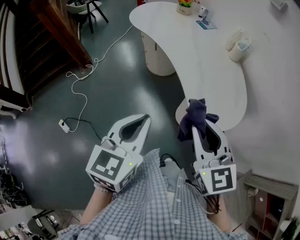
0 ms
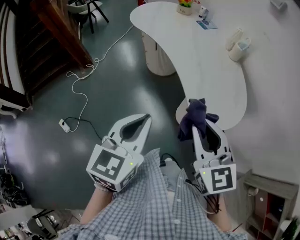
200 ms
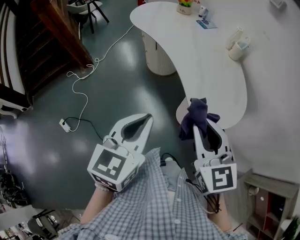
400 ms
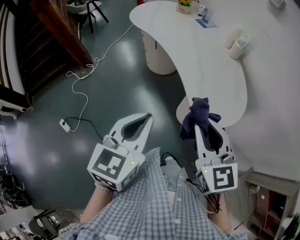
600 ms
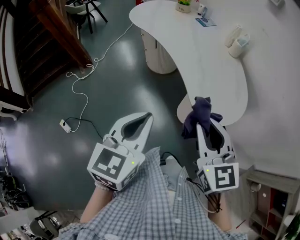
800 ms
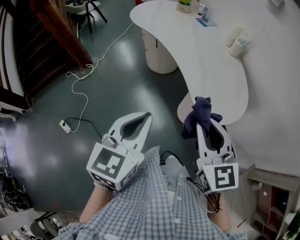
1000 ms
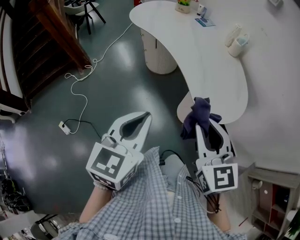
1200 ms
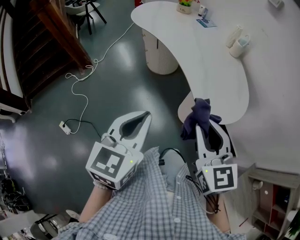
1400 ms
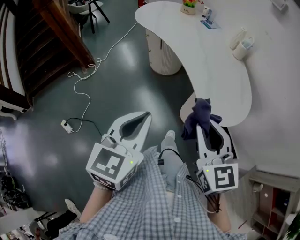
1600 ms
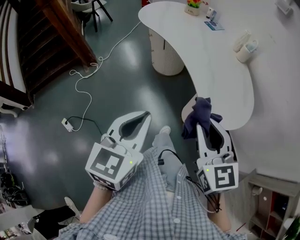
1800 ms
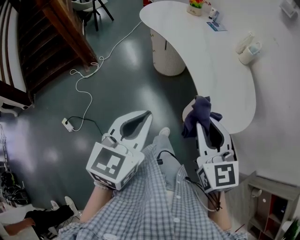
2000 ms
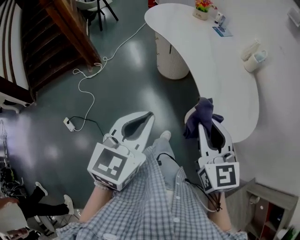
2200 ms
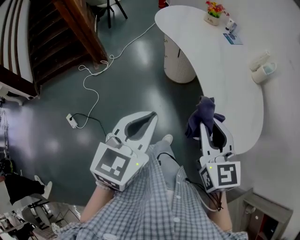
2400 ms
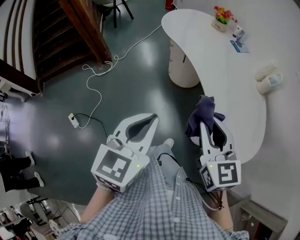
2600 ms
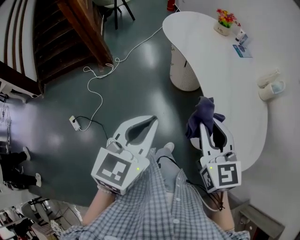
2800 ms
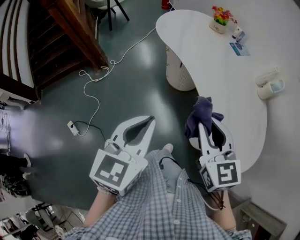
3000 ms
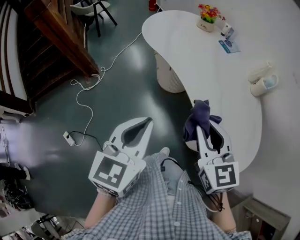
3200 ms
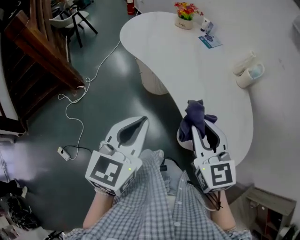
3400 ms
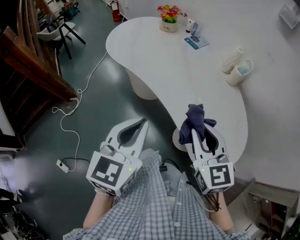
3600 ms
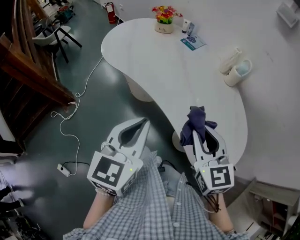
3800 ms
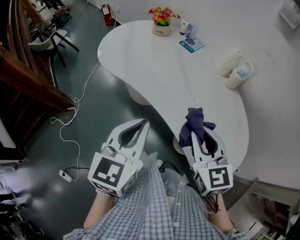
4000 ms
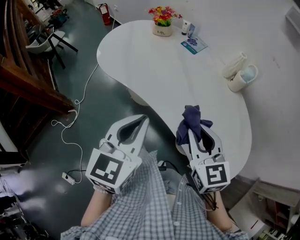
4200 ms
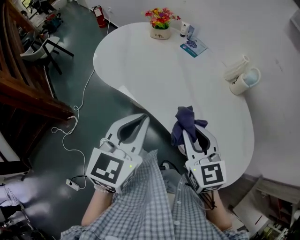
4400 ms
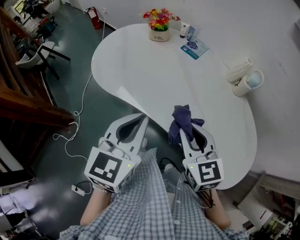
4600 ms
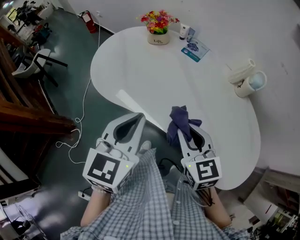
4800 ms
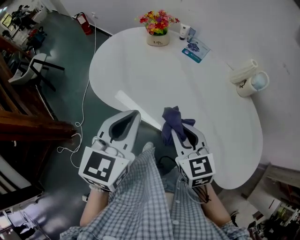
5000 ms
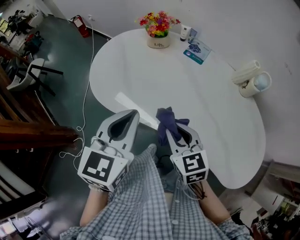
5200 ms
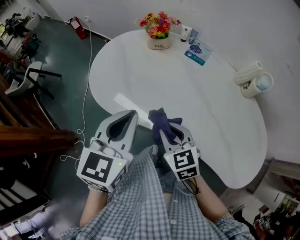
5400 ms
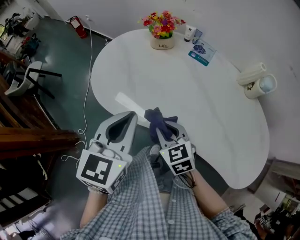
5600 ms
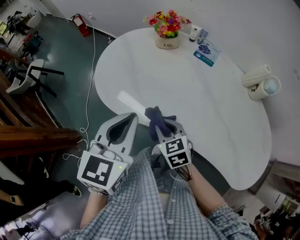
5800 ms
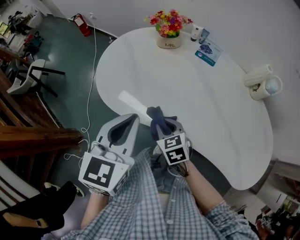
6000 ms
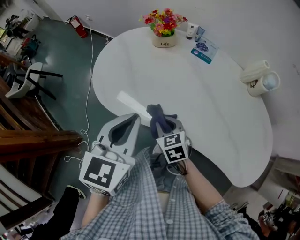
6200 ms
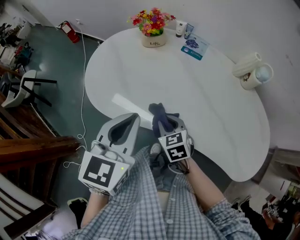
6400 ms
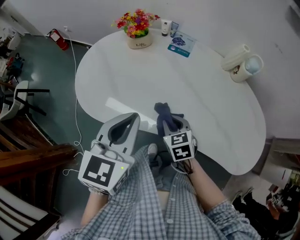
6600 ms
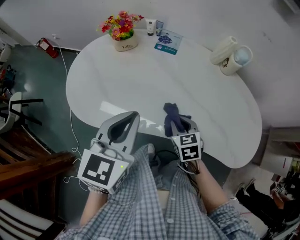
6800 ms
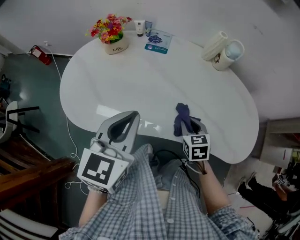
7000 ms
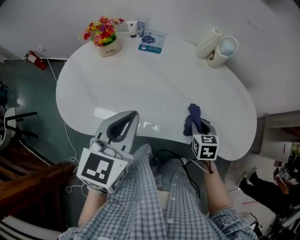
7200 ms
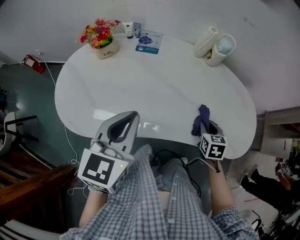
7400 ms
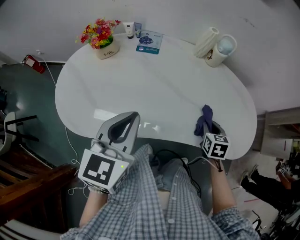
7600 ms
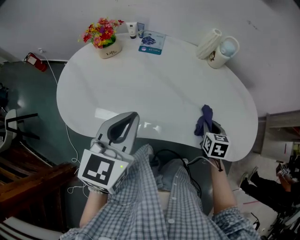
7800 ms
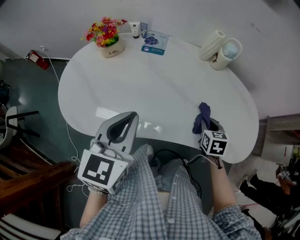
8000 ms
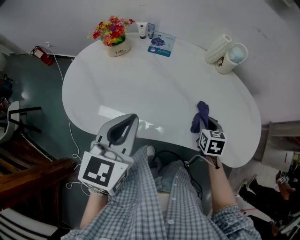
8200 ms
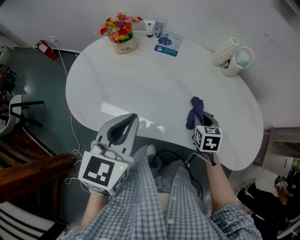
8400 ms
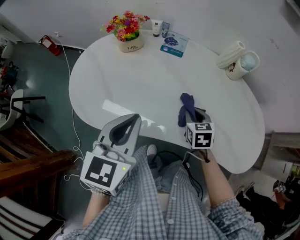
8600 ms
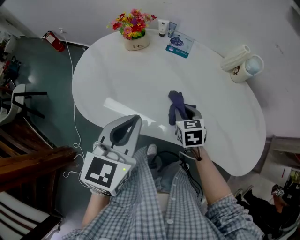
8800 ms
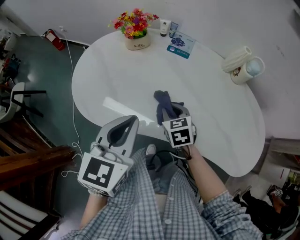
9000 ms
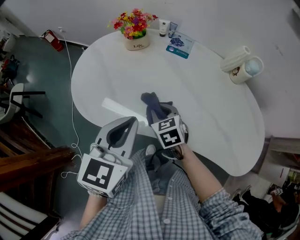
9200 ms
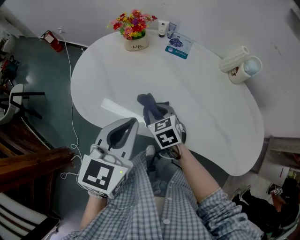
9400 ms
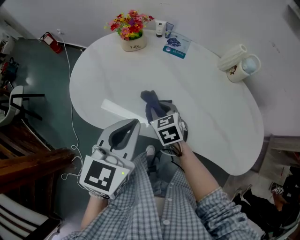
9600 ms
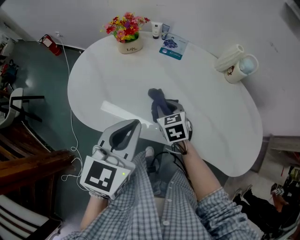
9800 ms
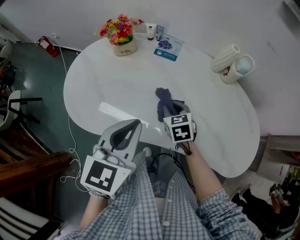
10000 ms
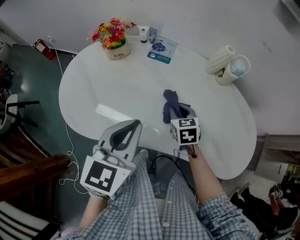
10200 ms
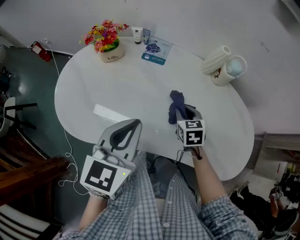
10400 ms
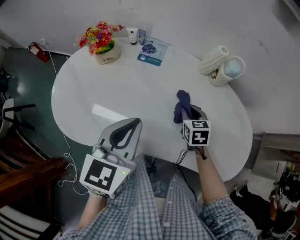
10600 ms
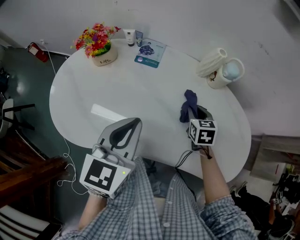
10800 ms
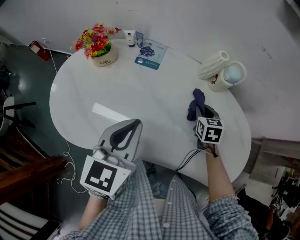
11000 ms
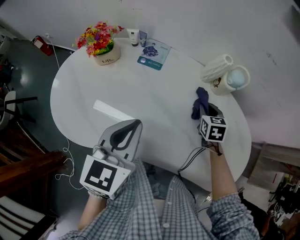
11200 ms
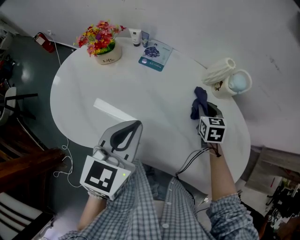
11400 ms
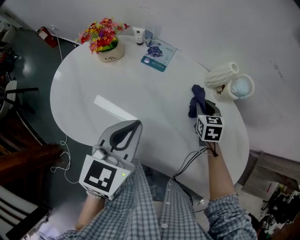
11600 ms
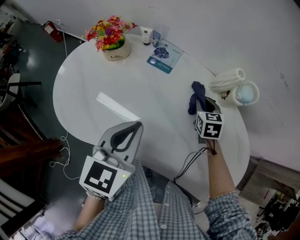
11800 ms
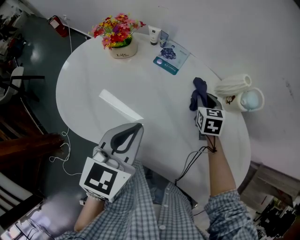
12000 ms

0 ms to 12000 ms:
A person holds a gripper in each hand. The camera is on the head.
0 ms to 1600 ms: The left gripper changes place by roughly 5 cm.
1600 ms to 3000 ms: Both grippers travel together forward, approximately 20 cm.
3000 ms to 4400 ms: The two grippers go approximately 20 cm forward. The right gripper turns by roughly 20 degrees. The left gripper rotates about 20 degrees.
4400 ms to 6000 ms: The left gripper travels forward and to the left by about 25 cm. Meanwhile the right gripper shifts approximately 35 cm to the left, downward and forward, and swivels roughly 20 degrees.
6000 ms to 7600 ms: The right gripper moves approximately 35 cm, and rotates roughly 50 degrees; the left gripper shifts by some 15 cm, and turns by approximately 20 degrees.
7600 ms to 9000 ms: The left gripper moves approximately 10 cm. Meanwhile the right gripper ends up roughly 30 cm from where it was, and changes its angle by about 40 degrees.
9000 ms to 10400 ms: The right gripper is displaced to the right by approximately 15 cm, while the left gripper travels to the right by approximately 10 cm.
10400 ms to 12000 ms: The right gripper travels forward by approximately 15 cm. Meanwhile the left gripper is displaced forward by about 5 cm.

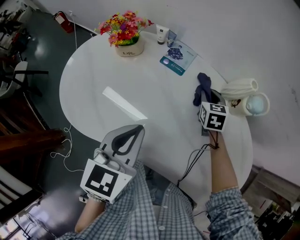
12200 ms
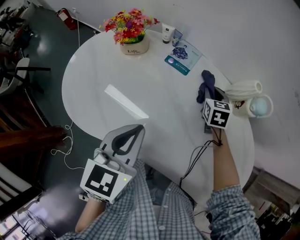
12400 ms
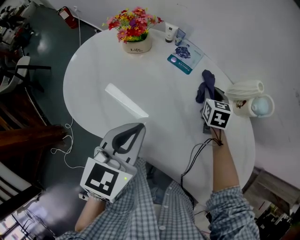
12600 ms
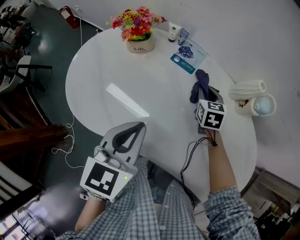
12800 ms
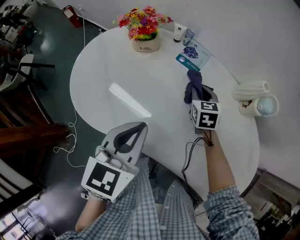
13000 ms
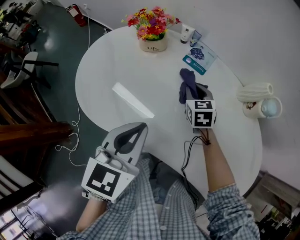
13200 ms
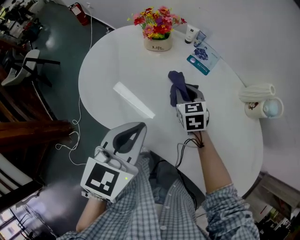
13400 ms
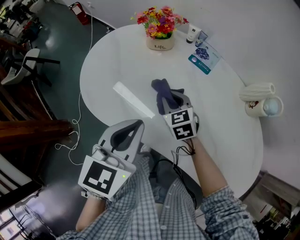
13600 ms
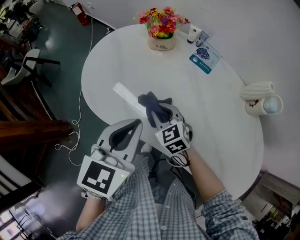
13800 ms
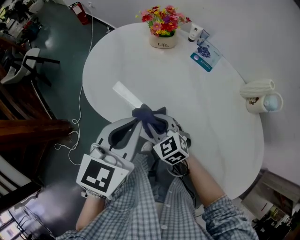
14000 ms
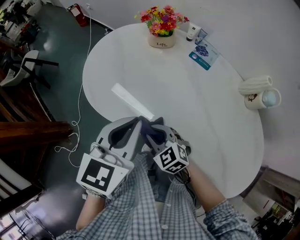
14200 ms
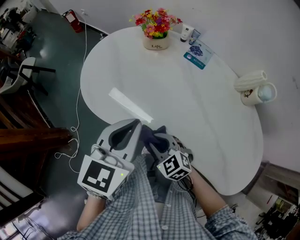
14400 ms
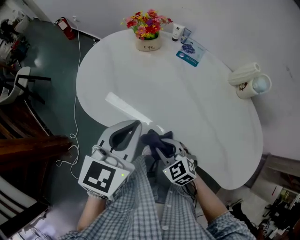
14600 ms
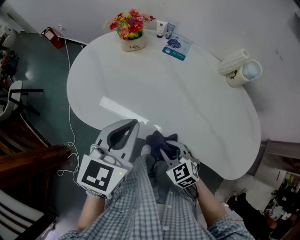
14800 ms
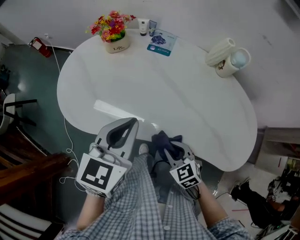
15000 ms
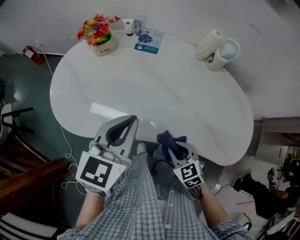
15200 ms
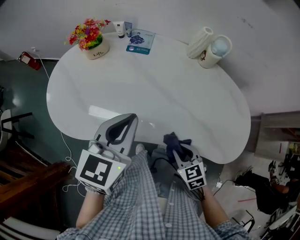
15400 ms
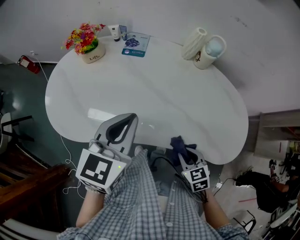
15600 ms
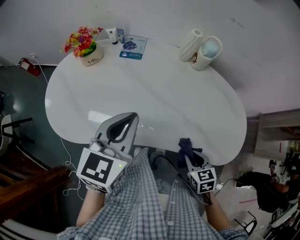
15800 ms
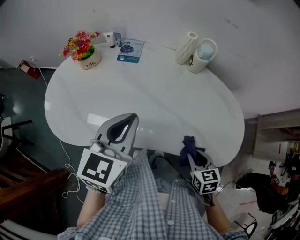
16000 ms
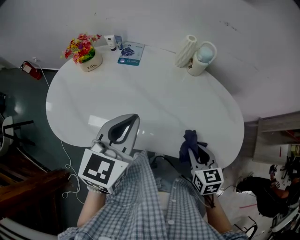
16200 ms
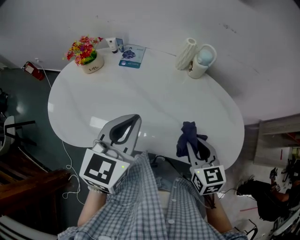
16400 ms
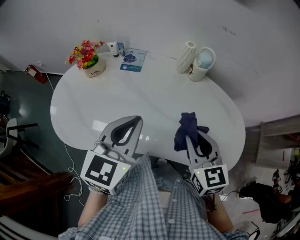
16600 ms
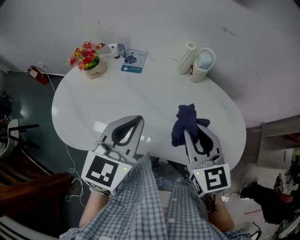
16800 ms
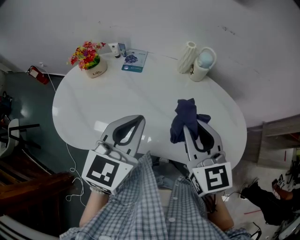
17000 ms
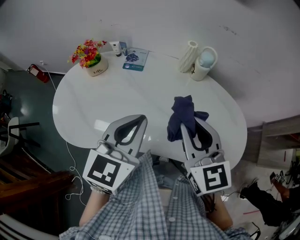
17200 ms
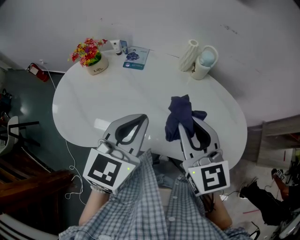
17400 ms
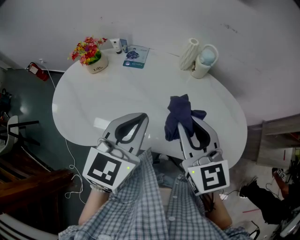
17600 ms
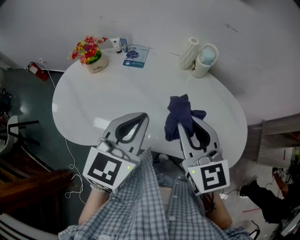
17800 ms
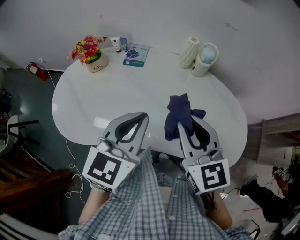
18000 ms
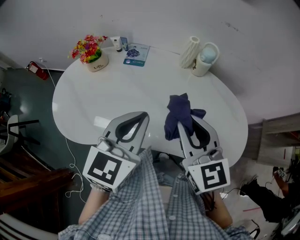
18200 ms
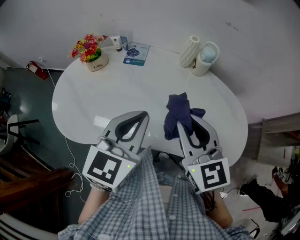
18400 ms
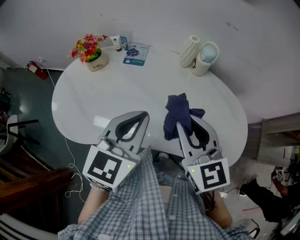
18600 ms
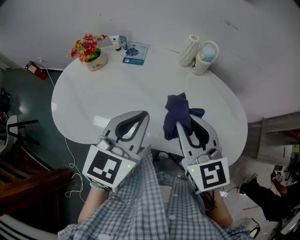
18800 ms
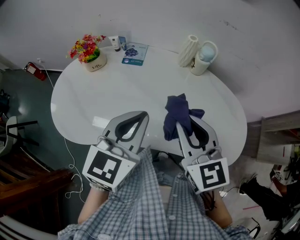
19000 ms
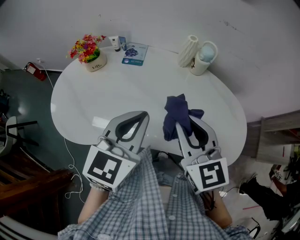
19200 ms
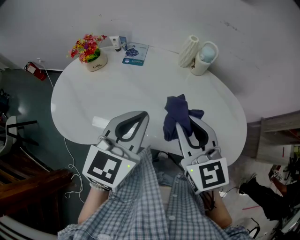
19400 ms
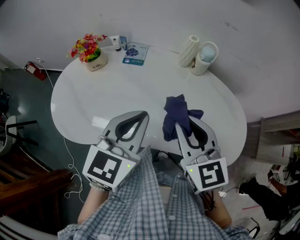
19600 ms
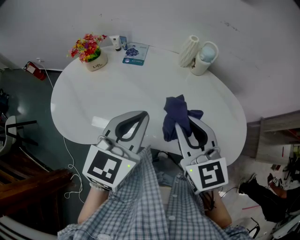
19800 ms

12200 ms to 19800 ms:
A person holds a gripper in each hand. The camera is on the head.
12200 ms to 13800 ms: The right gripper shifts by some 35 cm, and turns by roughly 40 degrees, while the left gripper moves about 15 cm.
13800 ms to 15200 ms: The right gripper moves approximately 25 cm, and changes its angle by about 30 degrees. Meanwhile the left gripper changes place by approximately 10 cm, and turns by roughly 20 degrees.
15200 ms to 16800 ms: The right gripper travels upward and forward by roughly 25 cm, and tips its fingers upward by about 30 degrees. The left gripper moves to the right and upward, about 10 cm.
16800 ms to 19800 ms: The grippers move only a little.

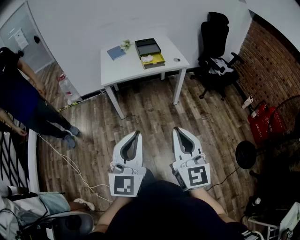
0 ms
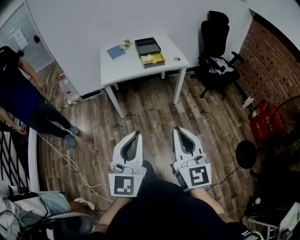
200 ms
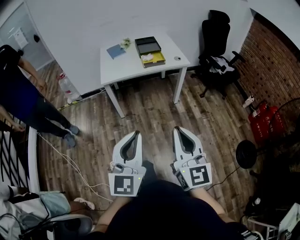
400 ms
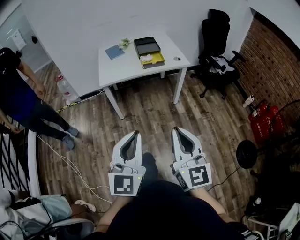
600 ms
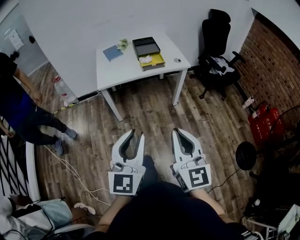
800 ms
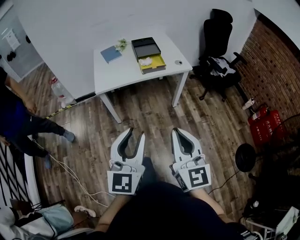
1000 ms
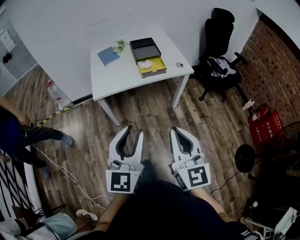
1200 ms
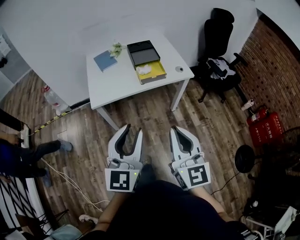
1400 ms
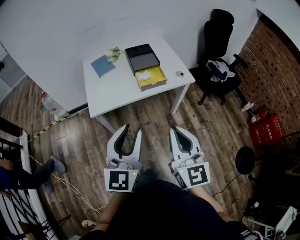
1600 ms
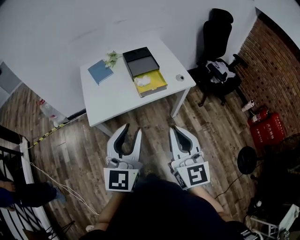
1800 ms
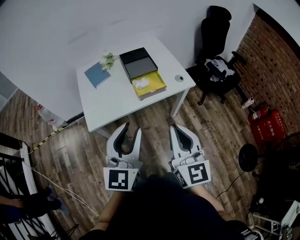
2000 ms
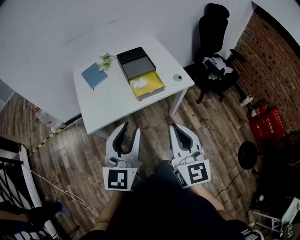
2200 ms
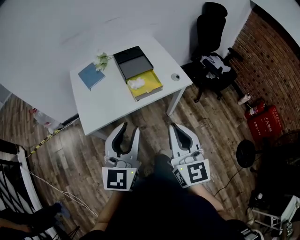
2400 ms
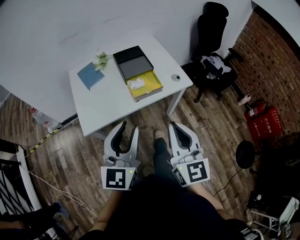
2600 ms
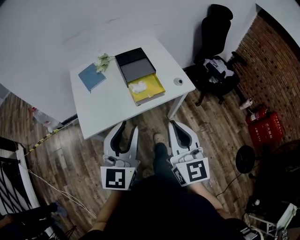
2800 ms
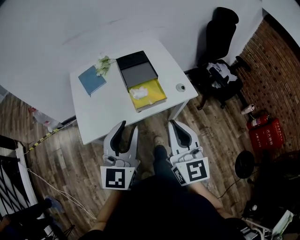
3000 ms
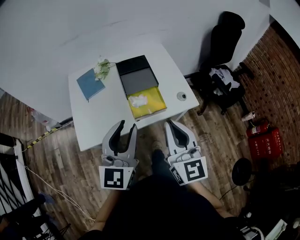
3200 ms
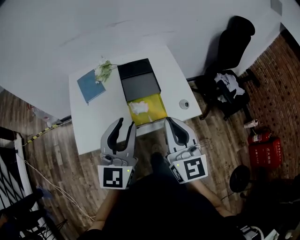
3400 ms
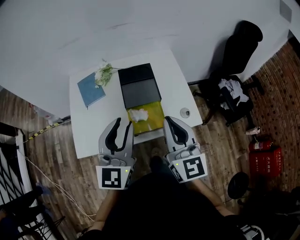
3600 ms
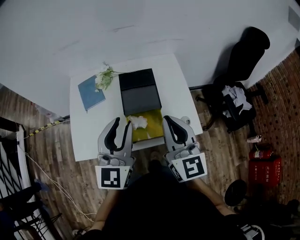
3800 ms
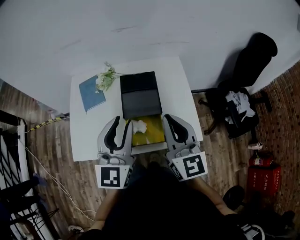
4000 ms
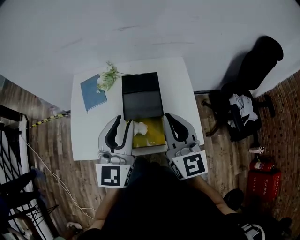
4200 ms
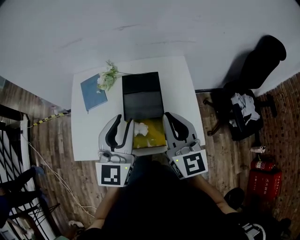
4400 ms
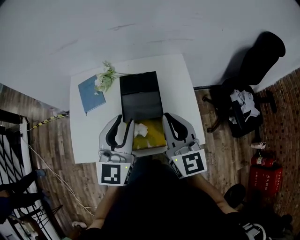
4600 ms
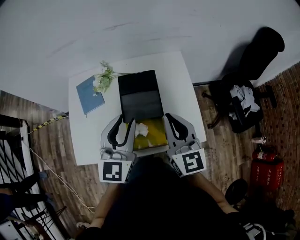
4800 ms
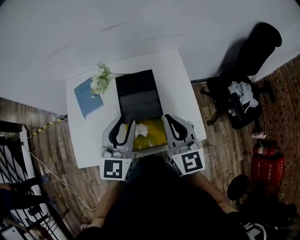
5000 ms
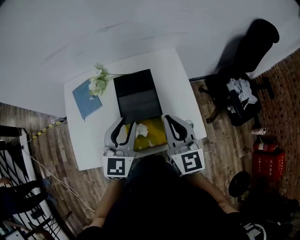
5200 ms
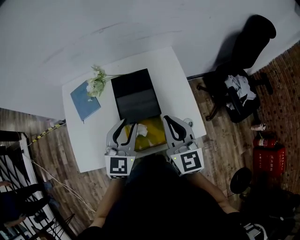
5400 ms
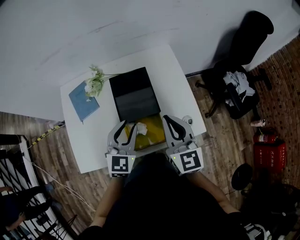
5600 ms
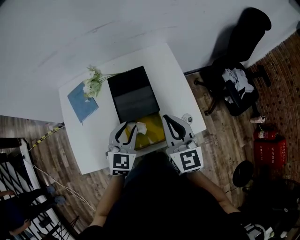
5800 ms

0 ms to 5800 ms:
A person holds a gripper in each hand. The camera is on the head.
0 ms to 1400 ms: Both grippers move forward, some 25 cm. The left gripper opens.
1400 ms to 2800 ms: The two grippers go approximately 20 cm forward.
2800 ms to 4400 ms: Both grippers travel together forward, approximately 30 cm. The right gripper swivels about 20 degrees.
4400 ms to 5800 ms: The left gripper moves downward, about 15 cm, and rotates roughly 30 degrees; the right gripper heads downward, covering about 5 cm.
